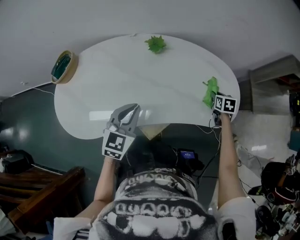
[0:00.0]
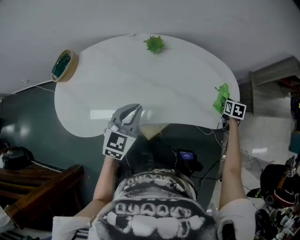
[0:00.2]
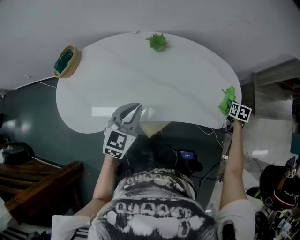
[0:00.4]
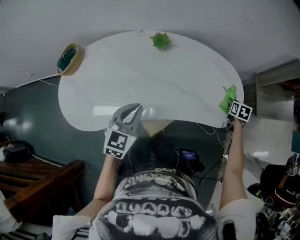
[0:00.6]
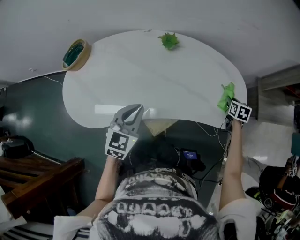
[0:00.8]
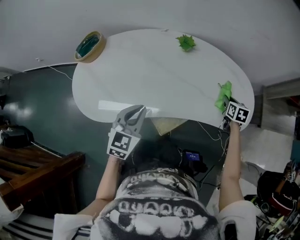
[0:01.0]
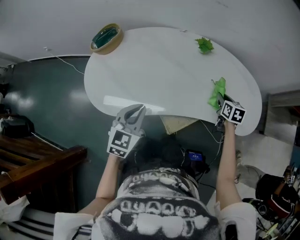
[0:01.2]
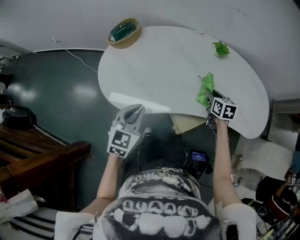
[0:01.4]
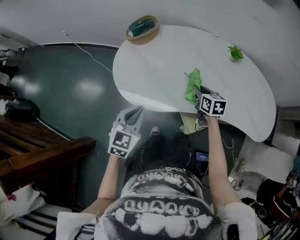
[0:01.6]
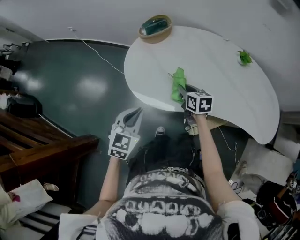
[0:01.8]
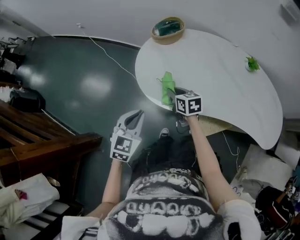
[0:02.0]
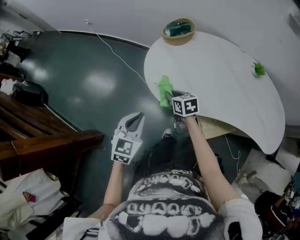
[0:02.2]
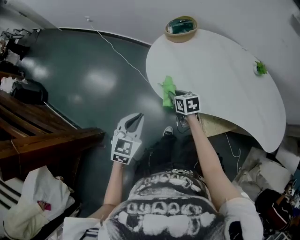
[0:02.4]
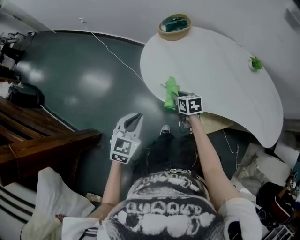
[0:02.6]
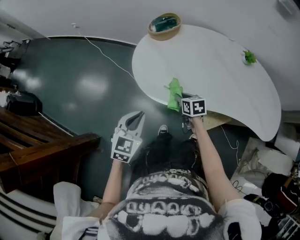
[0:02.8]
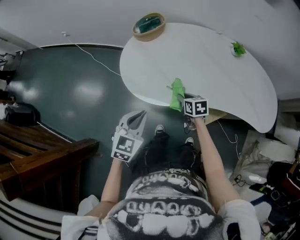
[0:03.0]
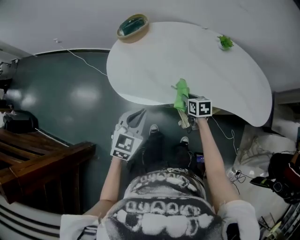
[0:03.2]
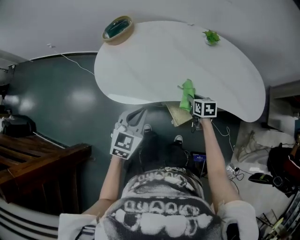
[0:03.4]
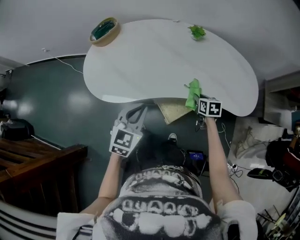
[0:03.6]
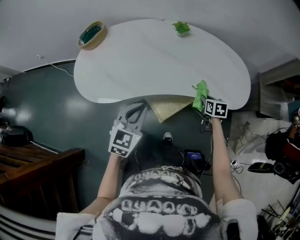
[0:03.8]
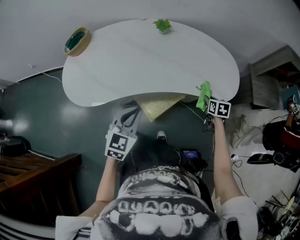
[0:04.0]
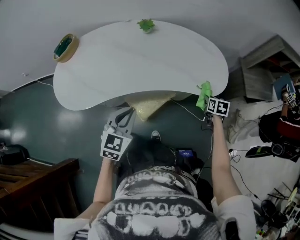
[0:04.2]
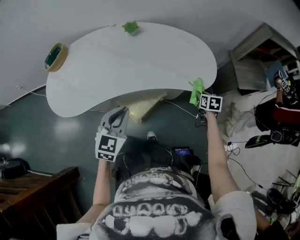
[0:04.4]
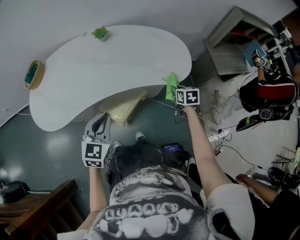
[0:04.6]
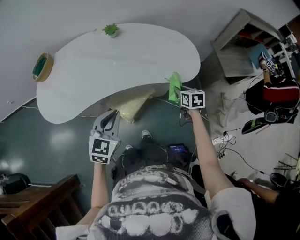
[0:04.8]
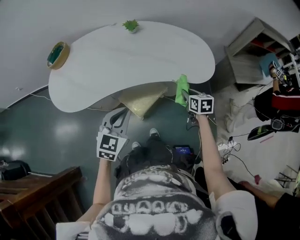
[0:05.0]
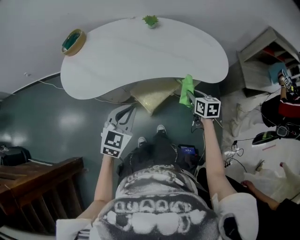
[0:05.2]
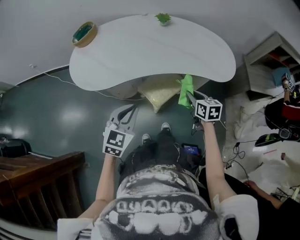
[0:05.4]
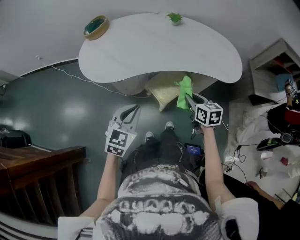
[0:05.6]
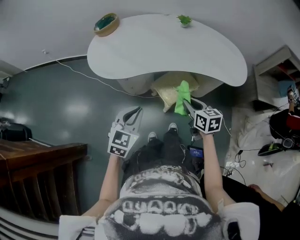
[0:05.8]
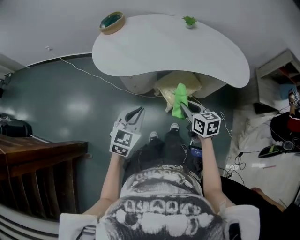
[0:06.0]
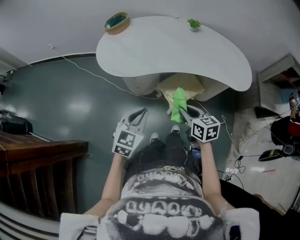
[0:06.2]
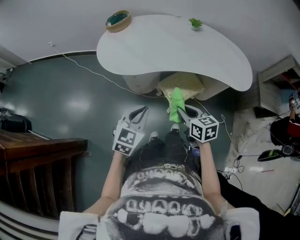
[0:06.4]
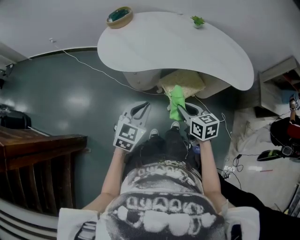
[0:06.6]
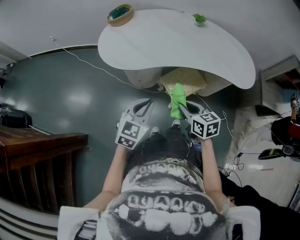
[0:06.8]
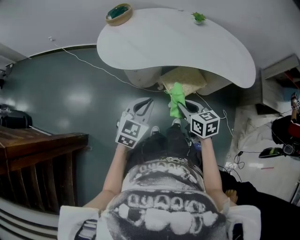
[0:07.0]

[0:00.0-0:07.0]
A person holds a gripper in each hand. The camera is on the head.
0:00.0 to 0:01.4: The left gripper ends up about 25 cm from where it was. Meanwhile the right gripper shifts by about 35 cm, and rotates some 20 degrees.
0:01.4 to 0:02.8: The left gripper changes place by some 20 cm. The right gripper shifts by roughly 35 cm, and swivels approximately 20 degrees.
0:02.8 to 0:04.2: The pair of grippers is taken roughly 60 cm. The right gripper turns by approximately 40 degrees; the left gripper changes its angle by some 20 degrees.
0:04.2 to 0:05.6: The left gripper is displaced backward and to the left by approximately 20 cm; the right gripper shifts approximately 35 cm to the left and backward, and changes its angle by about 30 degrees.
0:05.6 to 0:07.0: The right gripper shifts some 15 cm to the left.

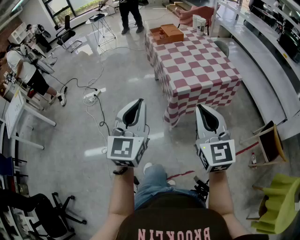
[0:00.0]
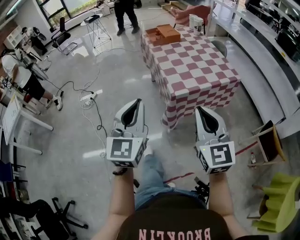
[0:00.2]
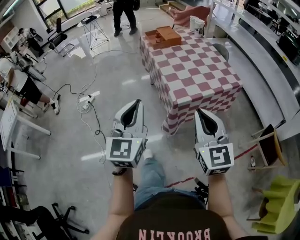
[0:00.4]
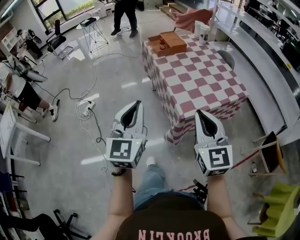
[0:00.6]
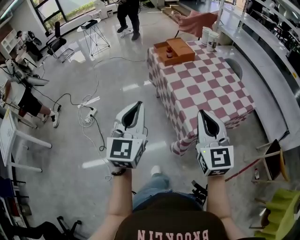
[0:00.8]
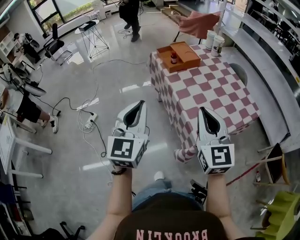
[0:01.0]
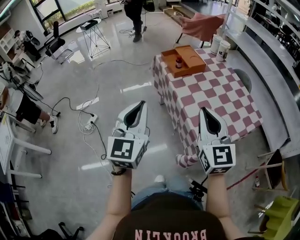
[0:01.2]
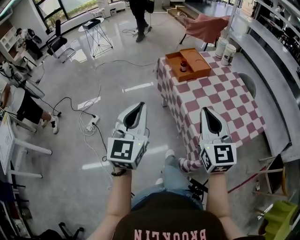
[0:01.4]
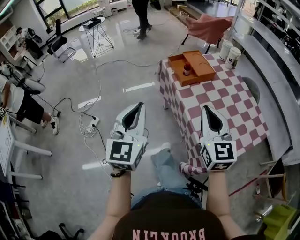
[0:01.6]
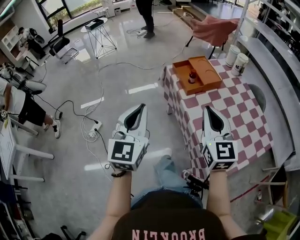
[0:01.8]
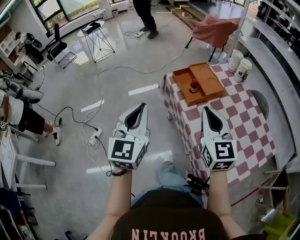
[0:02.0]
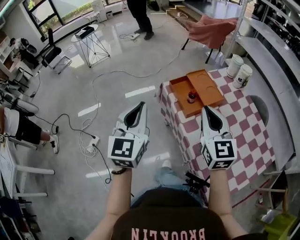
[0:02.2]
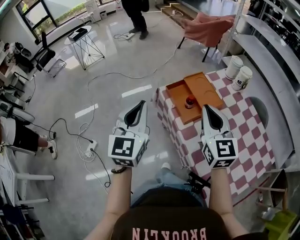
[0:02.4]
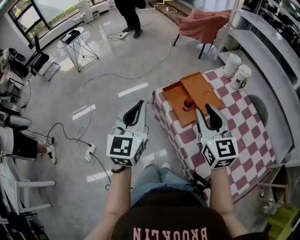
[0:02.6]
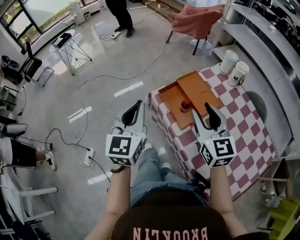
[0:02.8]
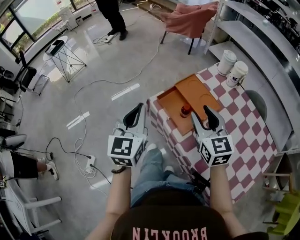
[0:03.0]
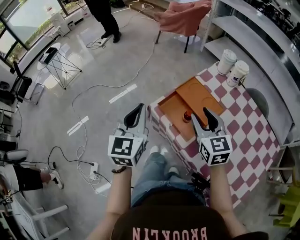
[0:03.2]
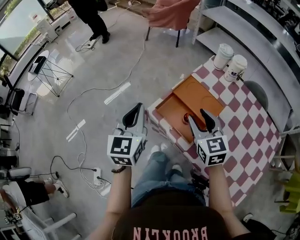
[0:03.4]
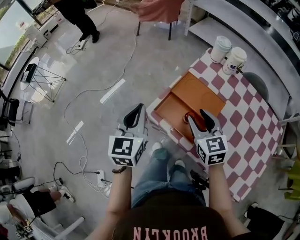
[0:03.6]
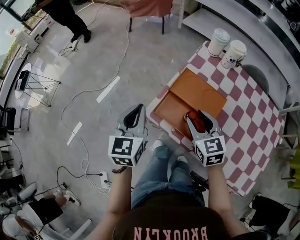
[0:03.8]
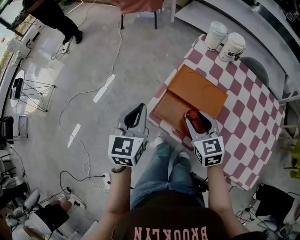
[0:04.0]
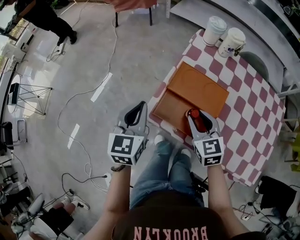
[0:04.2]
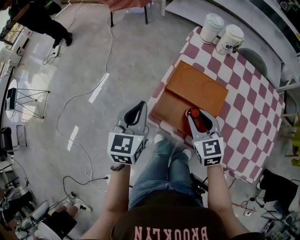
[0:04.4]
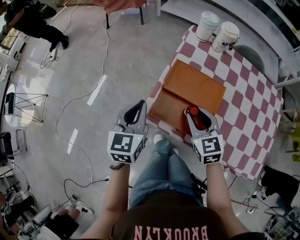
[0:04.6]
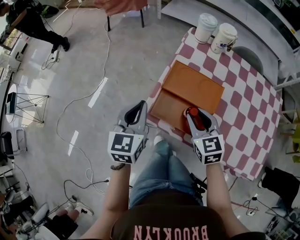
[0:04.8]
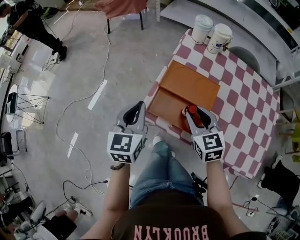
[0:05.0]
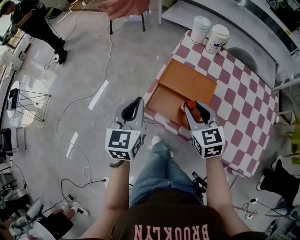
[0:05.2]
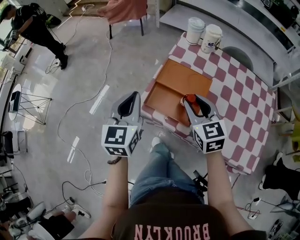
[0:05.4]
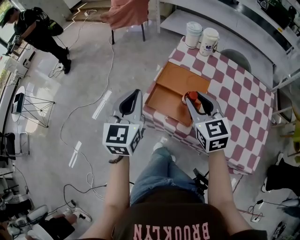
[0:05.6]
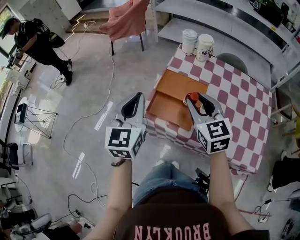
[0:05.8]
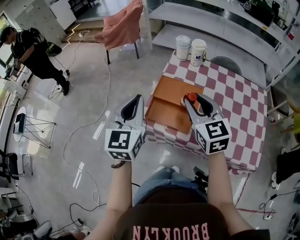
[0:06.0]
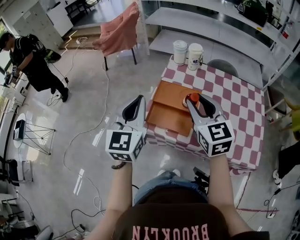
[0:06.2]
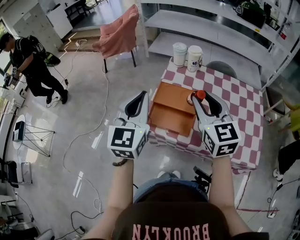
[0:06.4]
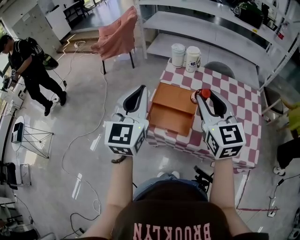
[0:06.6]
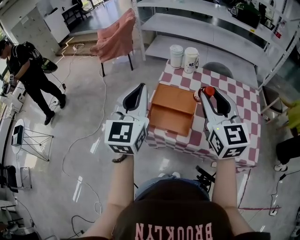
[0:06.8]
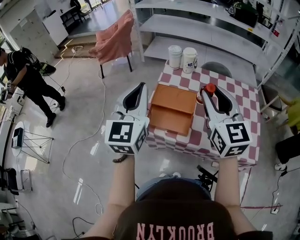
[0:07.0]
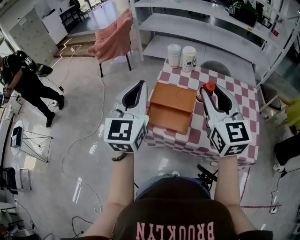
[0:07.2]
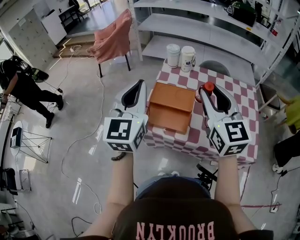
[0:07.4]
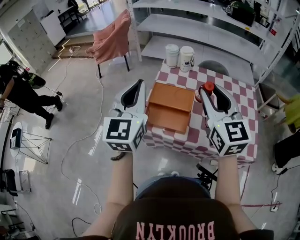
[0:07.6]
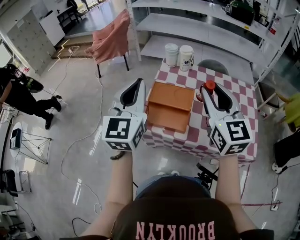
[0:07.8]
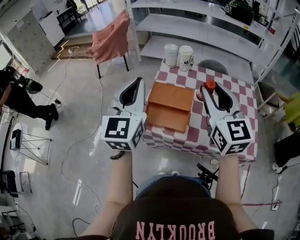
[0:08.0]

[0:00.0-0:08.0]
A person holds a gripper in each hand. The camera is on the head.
0:00.0 to 0:01.6: The two grippers travel together, forward and to the left, about 50 cm.
0:01.6 to 0:03.2: Both grippers move forward, about 40 cm. The left gripper swivels some 20 degrees. The right gripper opens up.
0:03.2 to 0:04.8: The right gripper heads downward, covering approximately 10 cm, and changes its angle by roughly 20 degrees. Meanwhile the left gripper moves forward and downward, about 15 cm, and changes its angle by roughly 30 degrees.
0:04.8 to 0:06.4: The two grippers go about 20 cm upward. The right gripper rotates roughly 20 degrees. Meanwhile the left gripper changes its angle by about 20 degrees.
0:06.4 to 0:08.0: The two grippers go some 5 cm upward.

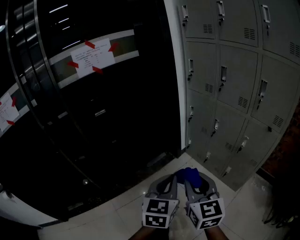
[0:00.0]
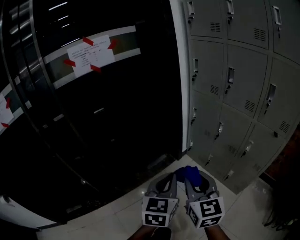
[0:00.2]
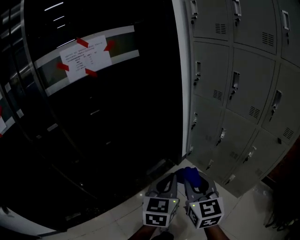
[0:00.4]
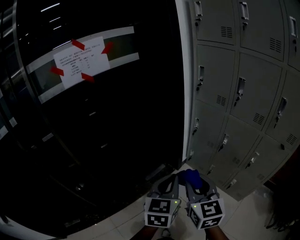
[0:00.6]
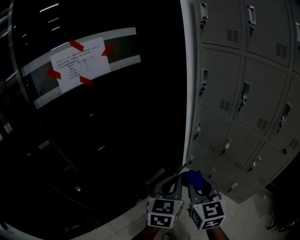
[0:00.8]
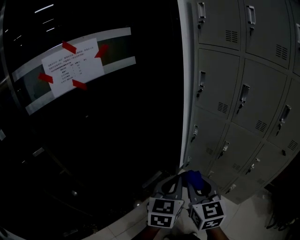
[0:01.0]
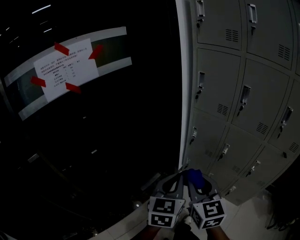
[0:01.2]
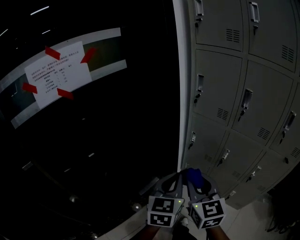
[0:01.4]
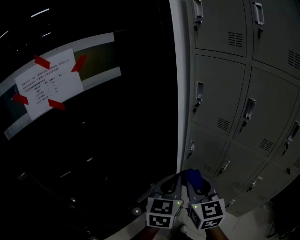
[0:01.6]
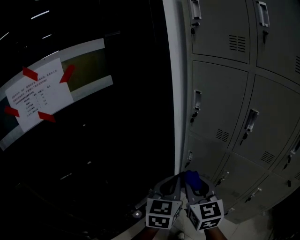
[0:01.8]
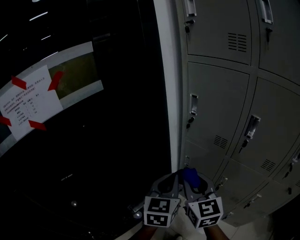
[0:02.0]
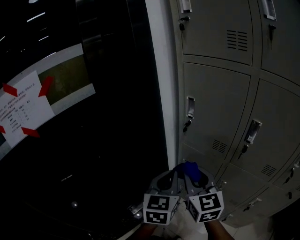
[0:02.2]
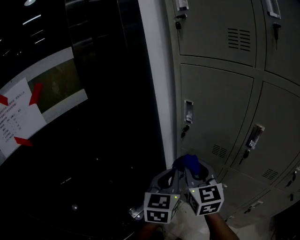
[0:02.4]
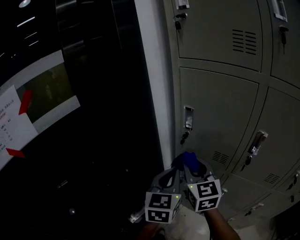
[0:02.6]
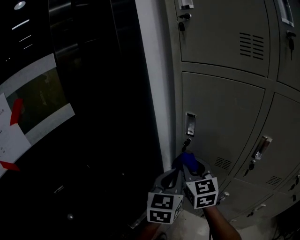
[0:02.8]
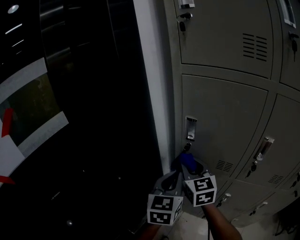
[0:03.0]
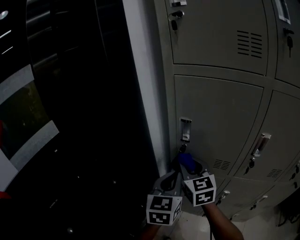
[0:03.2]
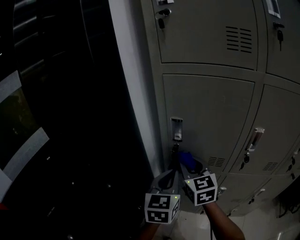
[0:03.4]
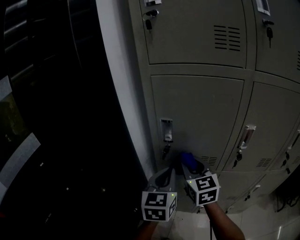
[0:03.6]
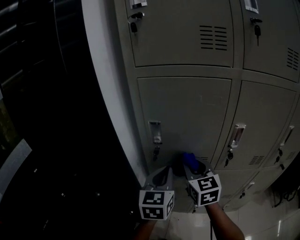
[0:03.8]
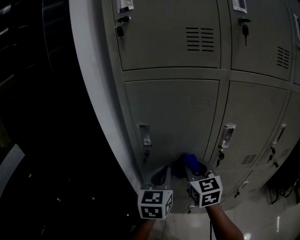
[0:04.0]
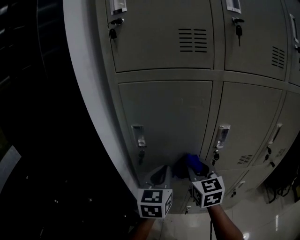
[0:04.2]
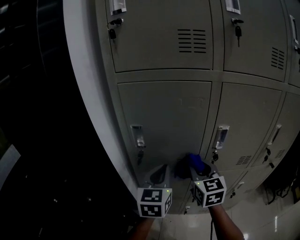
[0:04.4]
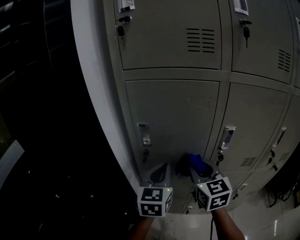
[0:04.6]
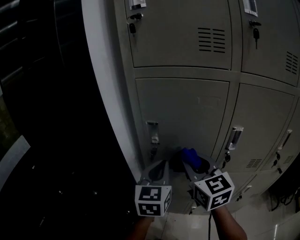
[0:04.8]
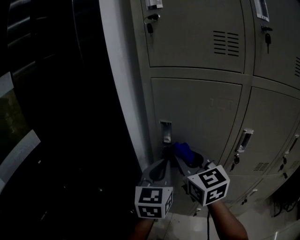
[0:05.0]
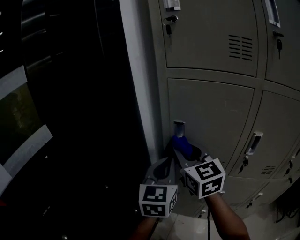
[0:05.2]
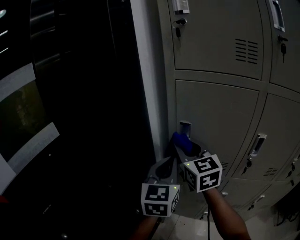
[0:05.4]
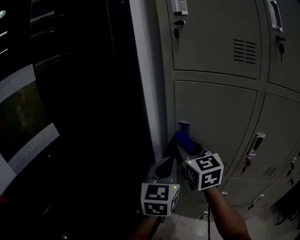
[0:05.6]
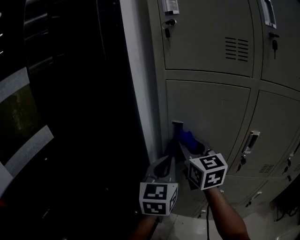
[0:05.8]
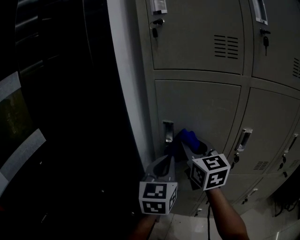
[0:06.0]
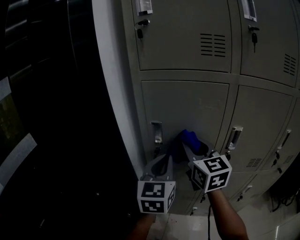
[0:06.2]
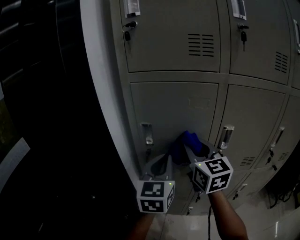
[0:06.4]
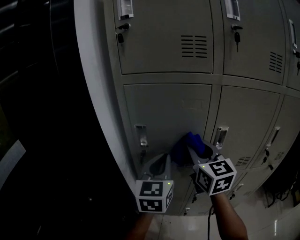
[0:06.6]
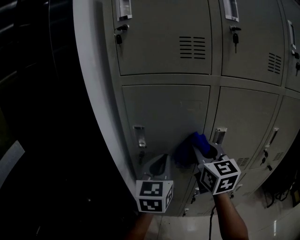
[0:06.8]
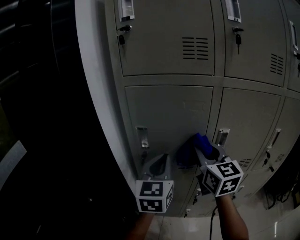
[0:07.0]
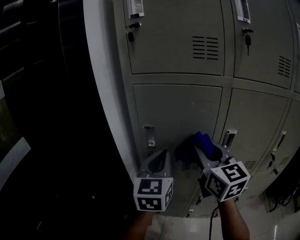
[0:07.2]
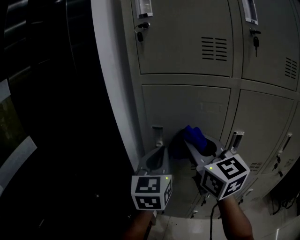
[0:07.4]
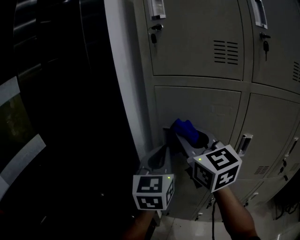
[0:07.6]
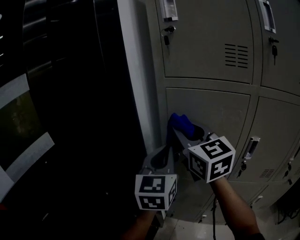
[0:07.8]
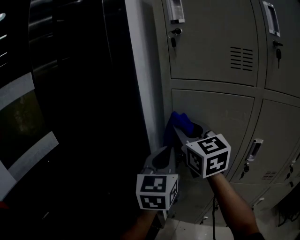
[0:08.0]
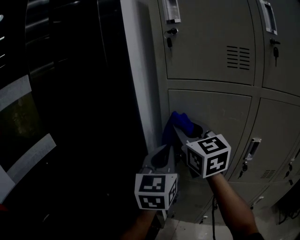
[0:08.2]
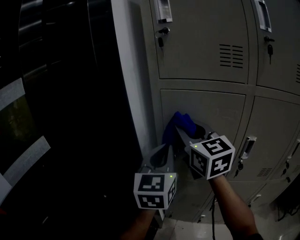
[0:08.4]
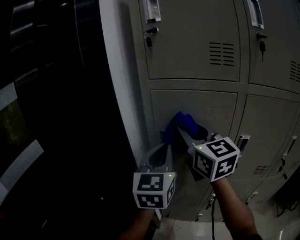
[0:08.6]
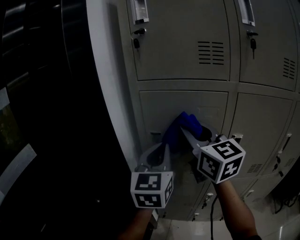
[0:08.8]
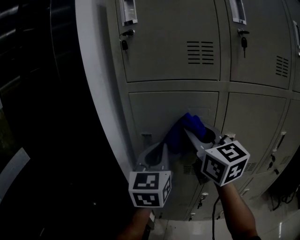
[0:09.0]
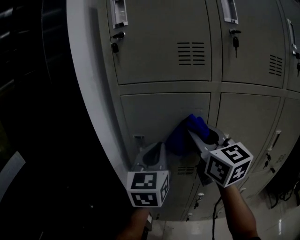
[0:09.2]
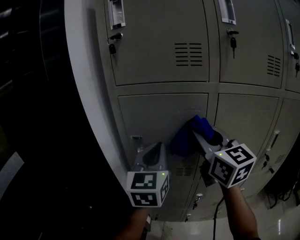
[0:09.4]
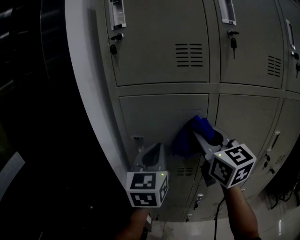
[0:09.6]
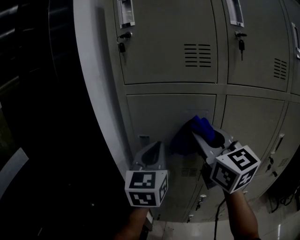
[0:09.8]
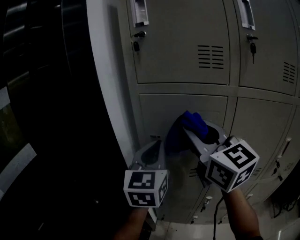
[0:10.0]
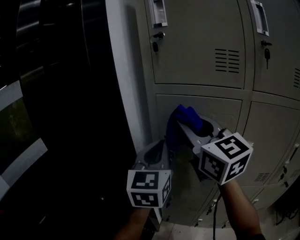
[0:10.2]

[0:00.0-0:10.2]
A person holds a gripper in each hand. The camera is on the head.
0:00.0 to 0:01.4: Both grippers move forward, some 35 cm.
0:01.4 to 0:03.0: Both grippers travel together forward, approximately 40 cm.
0:03.0 to 0:04.4: The right gripper is displaced to the right by some 20 cm, and turns by roughly 30 degrees. Meanwhile the left gripper moves to the right, about 10 cm.
0:04.4 to 0:05.8: The left gripper goes roughly 10 cm to the left and upward. Meanwhile the right gripper shifts some 20 cm to the left and upward, and swivels approximately 20 degrees.
0:05.8 to 0:07.2: The left gripper shifts roughly 5 cm to the right. The right gripper shifts roughly 15 cm to the right.
0:07.2 to 0:08.8: The right gripper is displaced upward and to the left by approximately 10 cm, while the left gripper reaches approximately 10 cm to the left, then returns.
0:08.8 to 0:10.2: The right gripper shifts approximately 5 cm upward and to the left.
